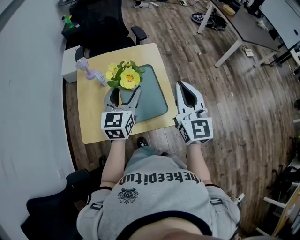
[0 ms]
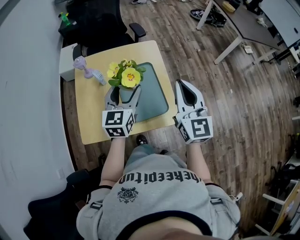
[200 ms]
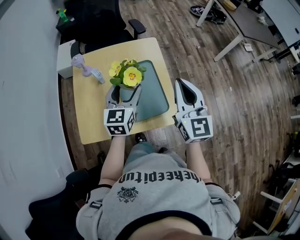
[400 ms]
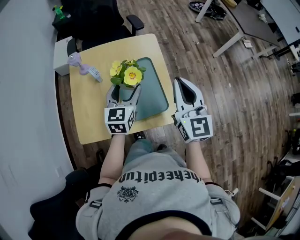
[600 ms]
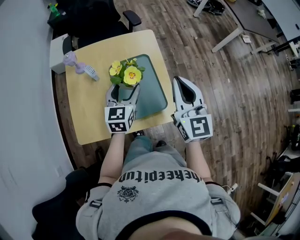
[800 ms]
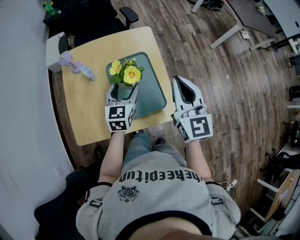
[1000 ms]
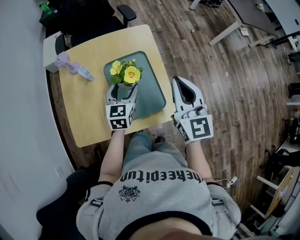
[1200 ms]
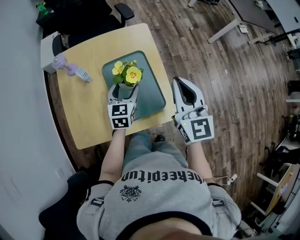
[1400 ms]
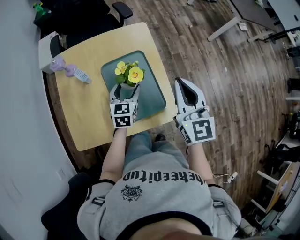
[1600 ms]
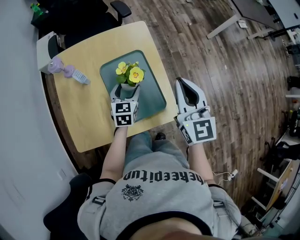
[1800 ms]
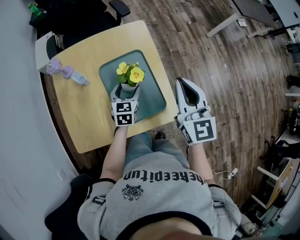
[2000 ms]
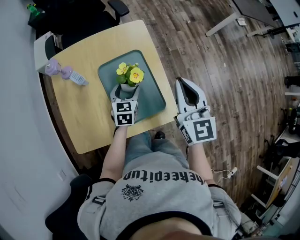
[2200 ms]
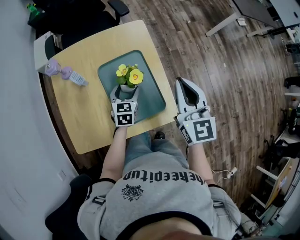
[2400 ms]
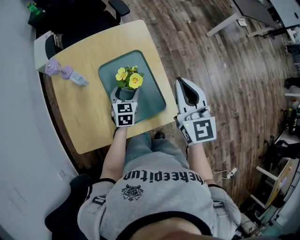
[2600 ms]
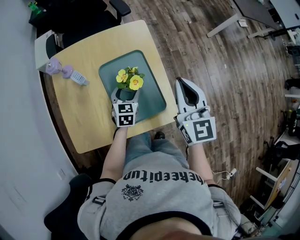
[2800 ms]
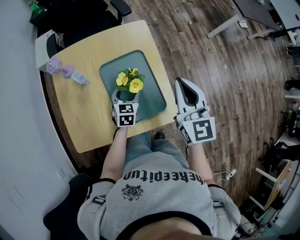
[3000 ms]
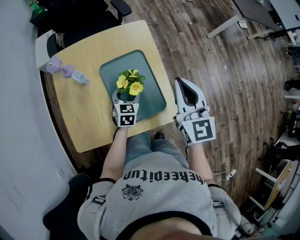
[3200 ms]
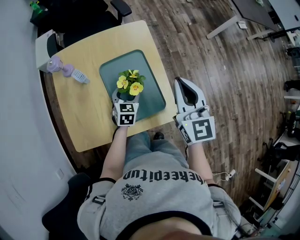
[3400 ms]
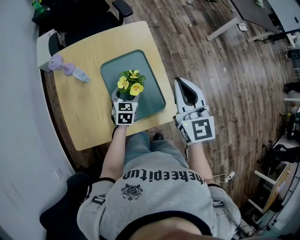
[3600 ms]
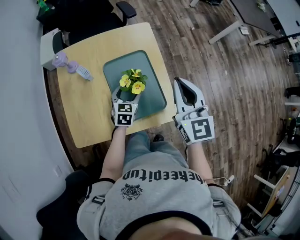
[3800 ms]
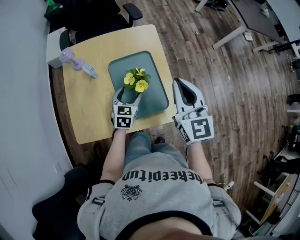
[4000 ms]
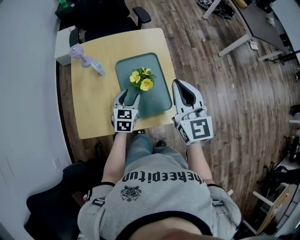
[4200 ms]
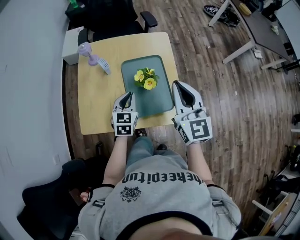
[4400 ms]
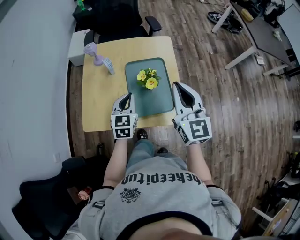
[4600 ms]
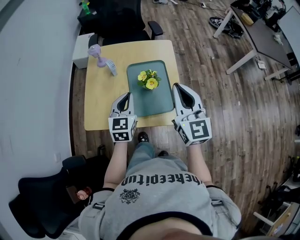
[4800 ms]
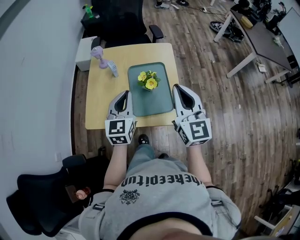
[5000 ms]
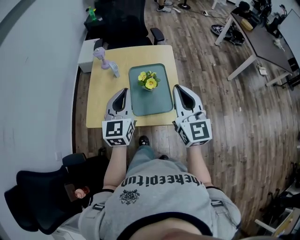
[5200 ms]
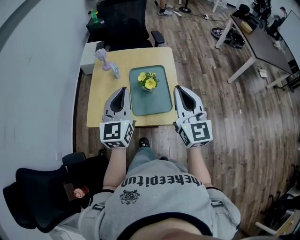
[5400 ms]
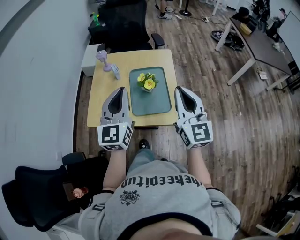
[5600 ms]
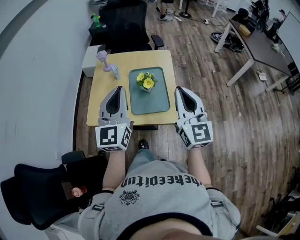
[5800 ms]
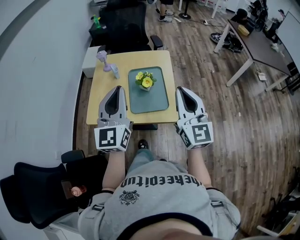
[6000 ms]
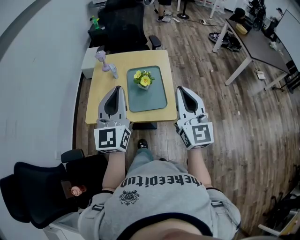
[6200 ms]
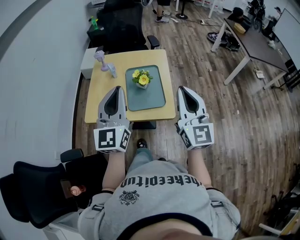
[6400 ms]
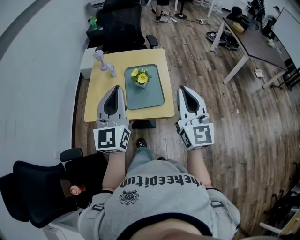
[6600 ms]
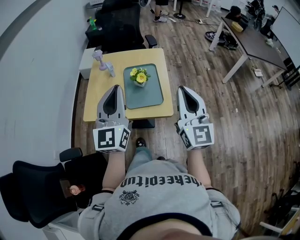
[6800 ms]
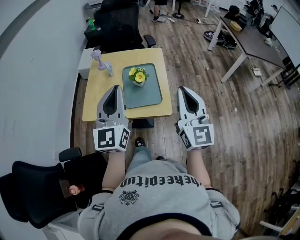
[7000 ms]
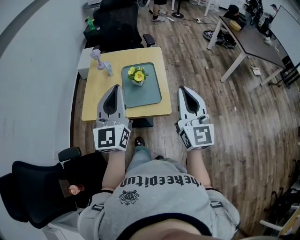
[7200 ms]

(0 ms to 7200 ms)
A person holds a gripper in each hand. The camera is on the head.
0 ms - 1400 ms: The right gripper heads forward and downward, covering some 10 cm. Meanwhile the left gripper heads downward and forward, covering roughly 20 cm.
1400 ms - 2800 ms: The left gripper heads downward, covering roughly 10 cm.
2800 ms - 4400 ms: The right gripper goes some 5 cm backward. The left gripper moves backward, upward and to the left, approximately 15 cm, and closes its fingers.
4400 ms - 5800 ms: The right gripper shifts approximately 15 cm backward and upward. Meanwhile the left gripper goes about 30 cm upward and backward, and angles its fingers upward, by roughly 40 degrees.
5800 ms - 7200 ms: Both grippers travel together backward, approximately 10 cm.

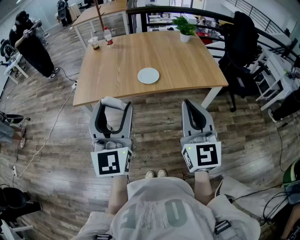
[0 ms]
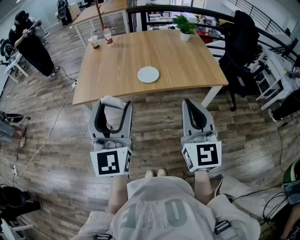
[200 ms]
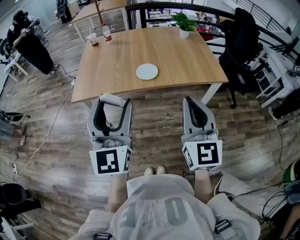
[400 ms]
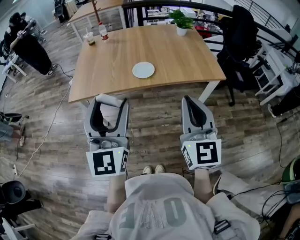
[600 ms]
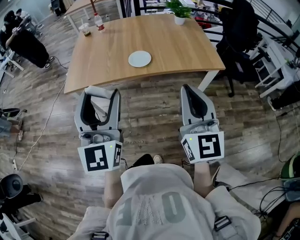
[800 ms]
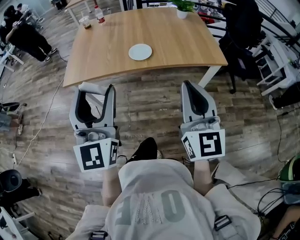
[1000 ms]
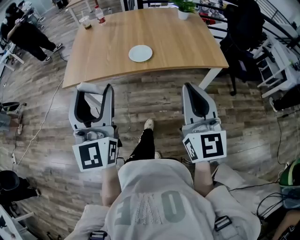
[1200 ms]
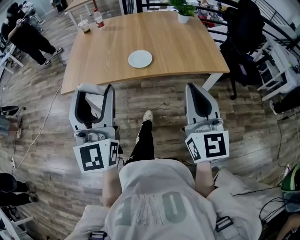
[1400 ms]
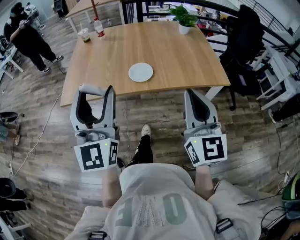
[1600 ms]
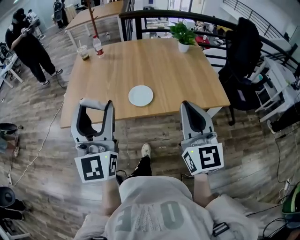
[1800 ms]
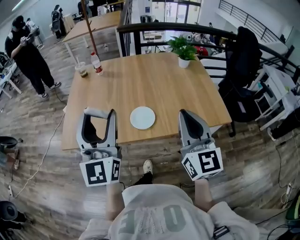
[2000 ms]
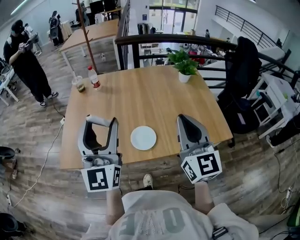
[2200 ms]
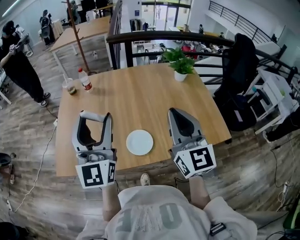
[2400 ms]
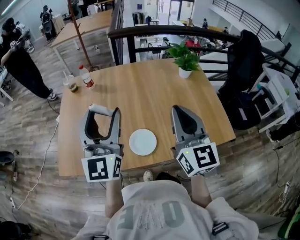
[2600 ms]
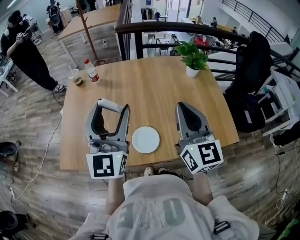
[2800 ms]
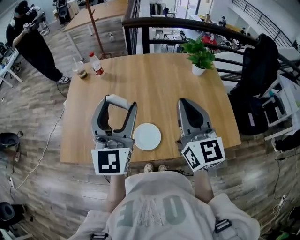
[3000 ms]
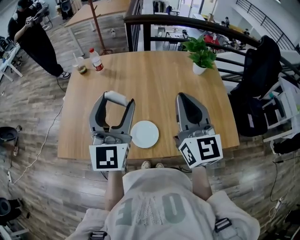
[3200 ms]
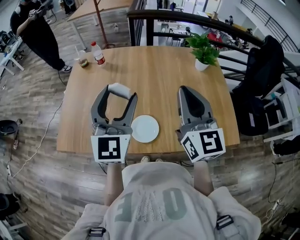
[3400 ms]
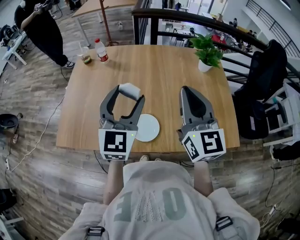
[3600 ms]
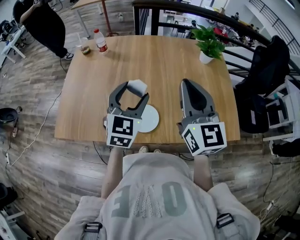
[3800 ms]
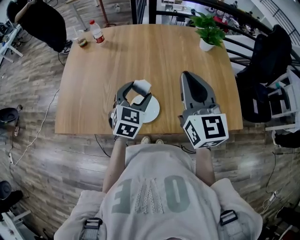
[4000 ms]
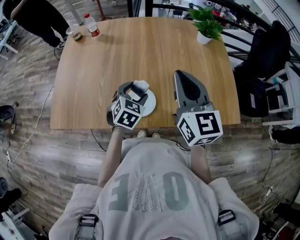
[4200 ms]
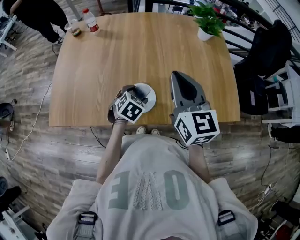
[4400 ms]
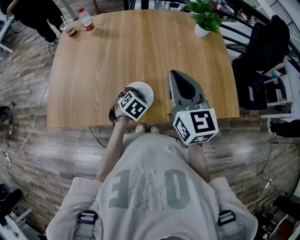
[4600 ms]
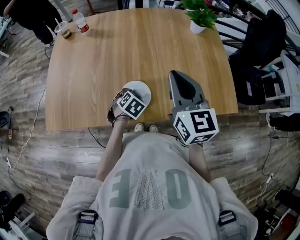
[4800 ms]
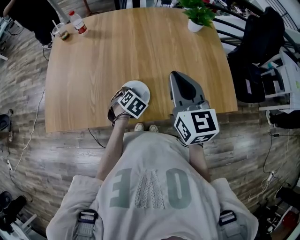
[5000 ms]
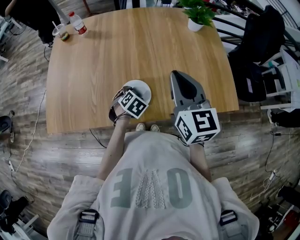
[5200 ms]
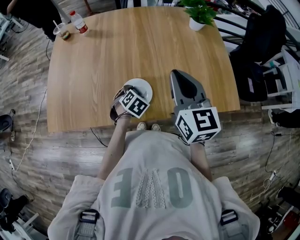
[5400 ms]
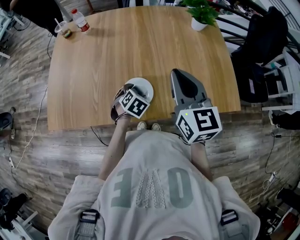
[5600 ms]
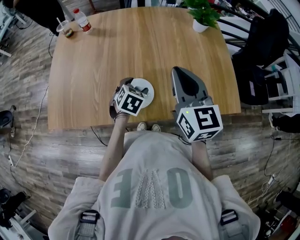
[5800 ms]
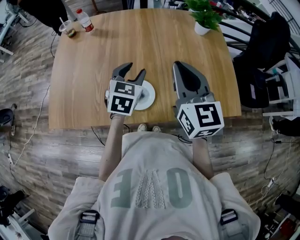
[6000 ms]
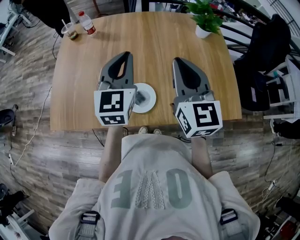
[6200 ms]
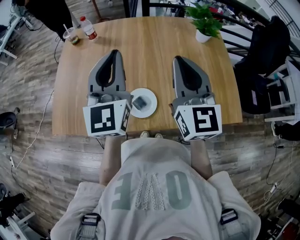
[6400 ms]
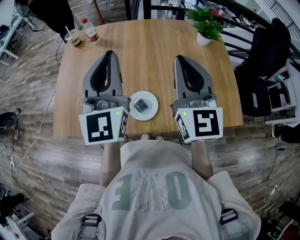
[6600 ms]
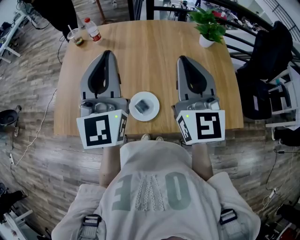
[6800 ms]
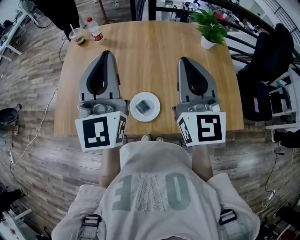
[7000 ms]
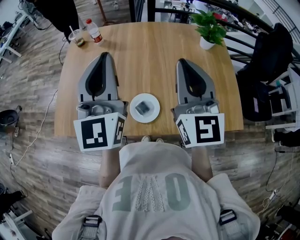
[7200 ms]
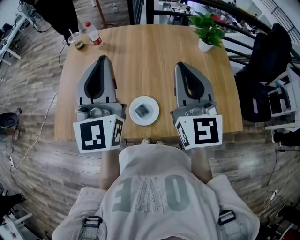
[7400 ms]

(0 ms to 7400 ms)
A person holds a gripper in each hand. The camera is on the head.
0 ms - 1400 ms: The right gripper travels to the right by about 5 cm.
1400 ms - 3000 ms: The two grippers travel together, forward, roughly 40 cm.
3000 ms - 4400 ms: The right gripper is displaced downward by roughly 10 cm. Meanwhile the left gripper moves downward, some 35 cm, and tilts its fingers roughly 70 degrees downward.
4400 ms - 6000 ms: The left gripper goes approximately 15 cm upward and forward, and swivels about 30 degrees.
6000 ms - 7400 ms: The right gripper travels upward by some 5 cm. Meanwhile the left gripper travels upward by about 25 cm, angles its fingers upward, by about 50 degrees, and closes up.

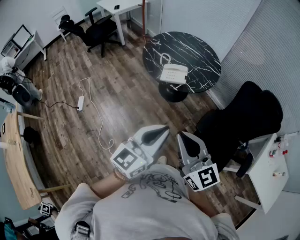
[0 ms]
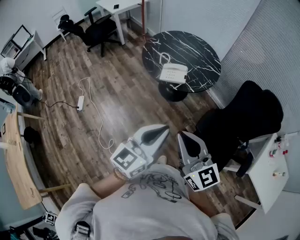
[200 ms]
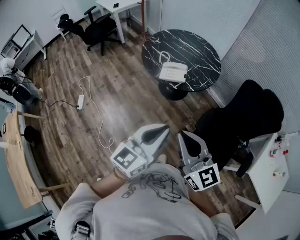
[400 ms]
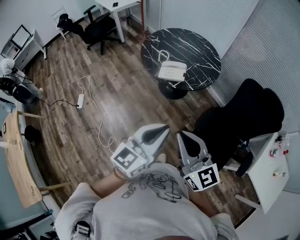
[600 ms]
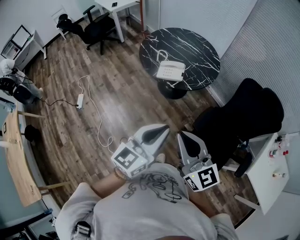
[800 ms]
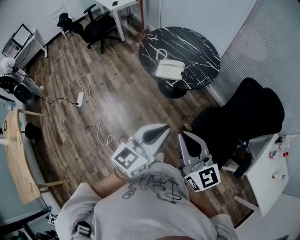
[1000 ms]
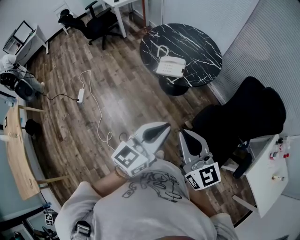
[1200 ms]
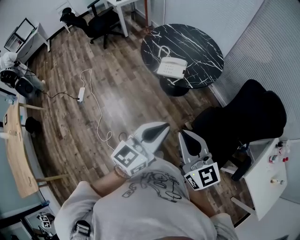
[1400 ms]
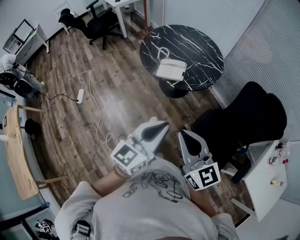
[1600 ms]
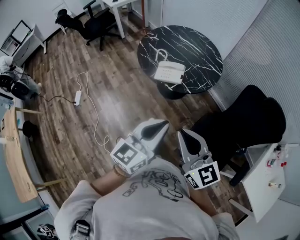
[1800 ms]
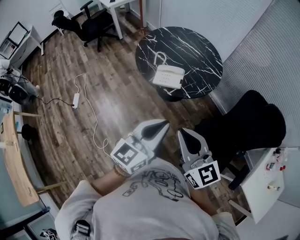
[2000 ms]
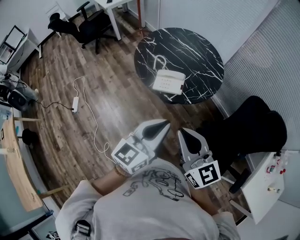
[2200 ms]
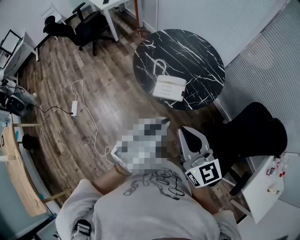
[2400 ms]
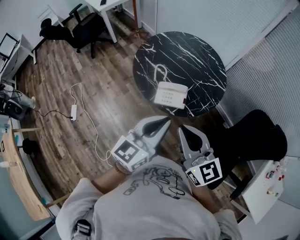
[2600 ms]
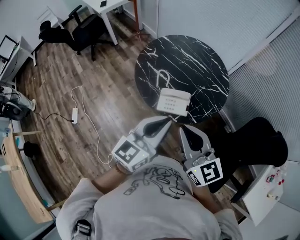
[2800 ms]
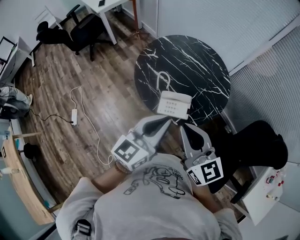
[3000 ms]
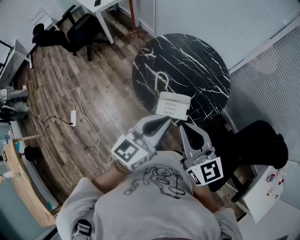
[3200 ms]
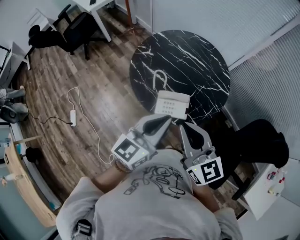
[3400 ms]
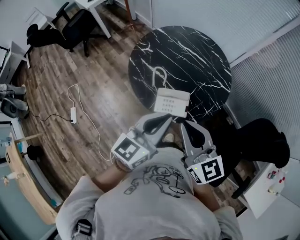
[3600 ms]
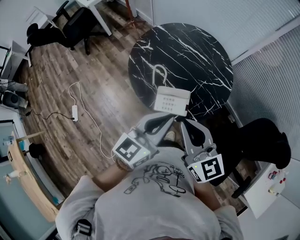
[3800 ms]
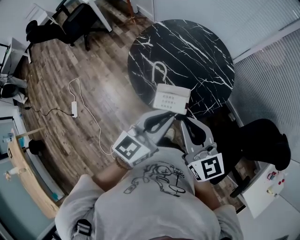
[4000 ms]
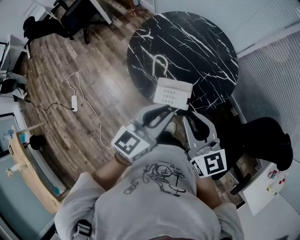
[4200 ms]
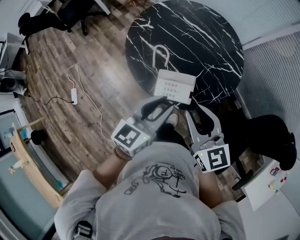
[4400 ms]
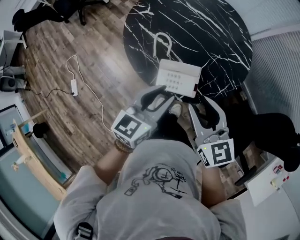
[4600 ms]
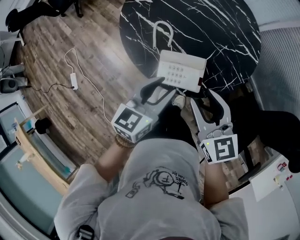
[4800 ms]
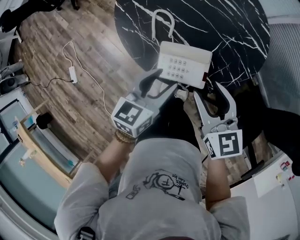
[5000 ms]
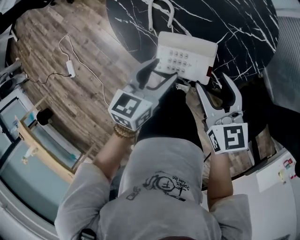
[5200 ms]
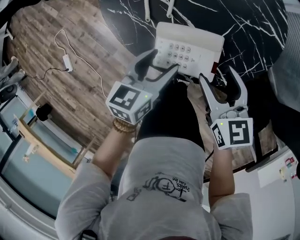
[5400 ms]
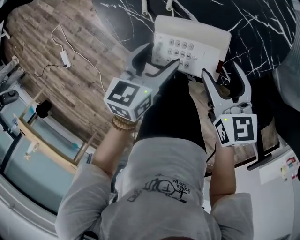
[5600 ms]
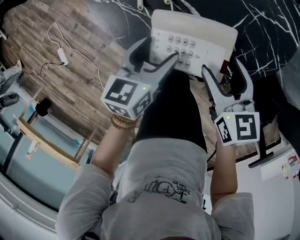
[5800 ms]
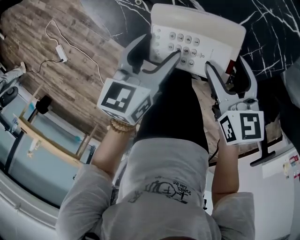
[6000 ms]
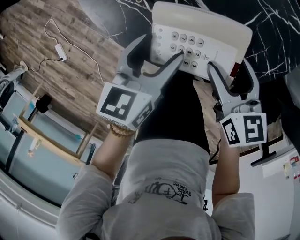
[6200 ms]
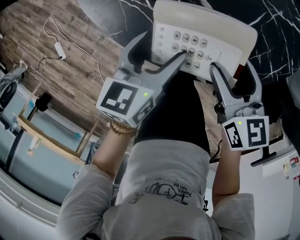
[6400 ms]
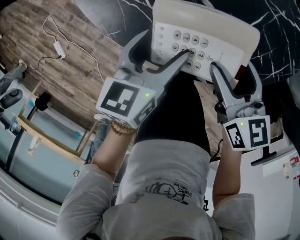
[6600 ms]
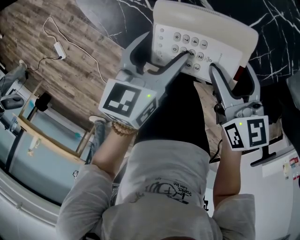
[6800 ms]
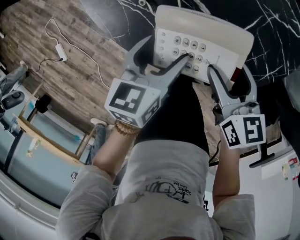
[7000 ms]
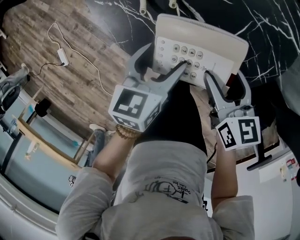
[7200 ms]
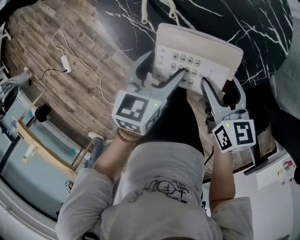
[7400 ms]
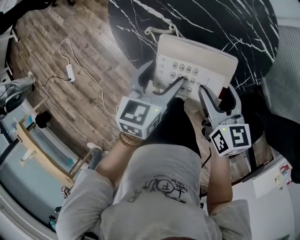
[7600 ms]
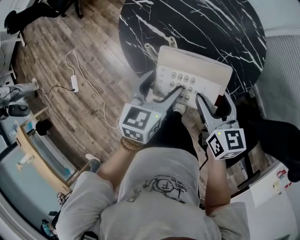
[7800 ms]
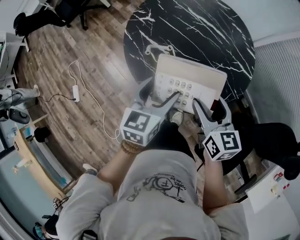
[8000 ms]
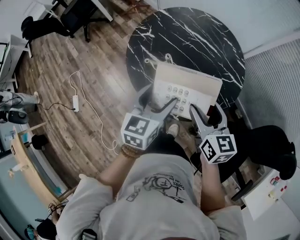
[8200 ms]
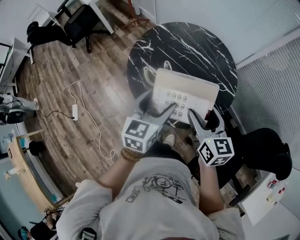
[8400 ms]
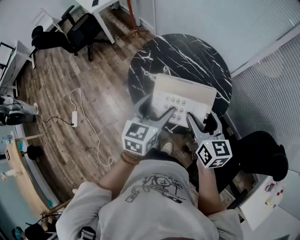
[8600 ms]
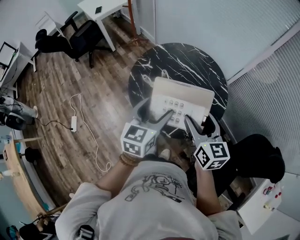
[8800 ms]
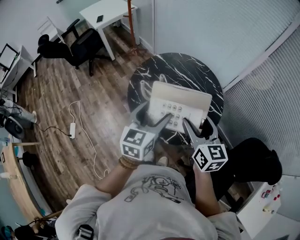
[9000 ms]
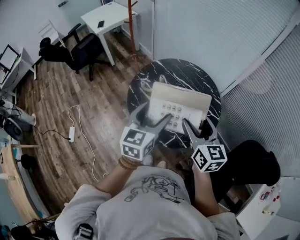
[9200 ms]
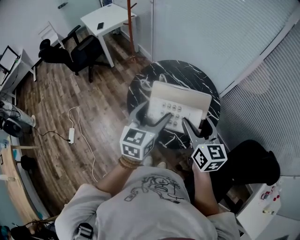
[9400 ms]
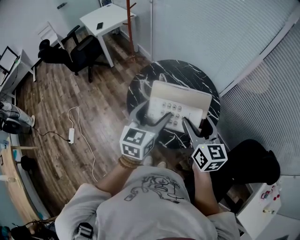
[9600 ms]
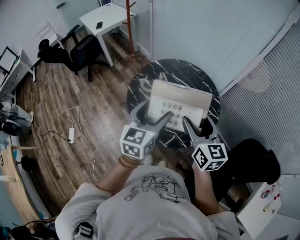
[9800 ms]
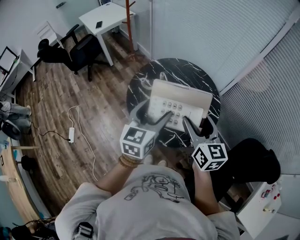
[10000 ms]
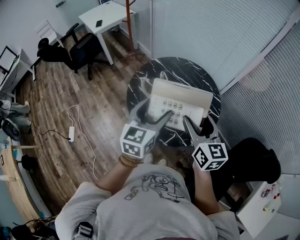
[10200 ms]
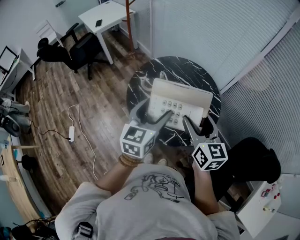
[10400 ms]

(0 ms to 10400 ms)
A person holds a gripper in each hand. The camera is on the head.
0 ms - 1400 ms: The two grippers go approximately 10 cm to the right.
1400 ms - 3000 ms: Both grippers are carried forward, about 40 cm.
3000 ms - 4400 ms: The right gripper moves downward, forward and to the right, roughly 15 cm; the left gripper heads downward and forward, covering some 15 cm.
4400 ms - 6000 ms: The grippers both shift downward by roughly 35 cm. The left gripper turns by about 20 degrees, and opens its fingers; the right gripper swivels roughly 30 degrees, and opens up.
6000 ms - 7400 ms: The grippers both shift upward by roughly 5 cm.
7400 ms - 9000 ms: Both grippers travel together upward, approximately 40 cm. The right gripper rotates some 30 degrees, while the left gripper rotates roughly 30 degrees.
9000 ms - 10400 ms: There are only small adjustments of the grippers.
